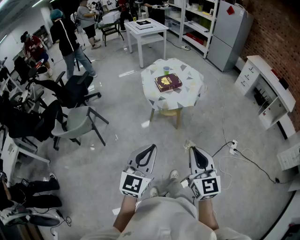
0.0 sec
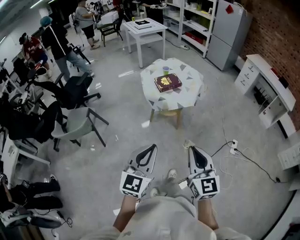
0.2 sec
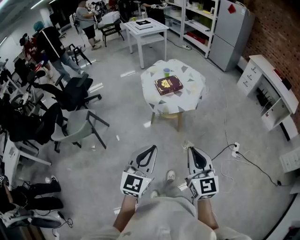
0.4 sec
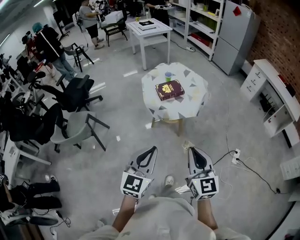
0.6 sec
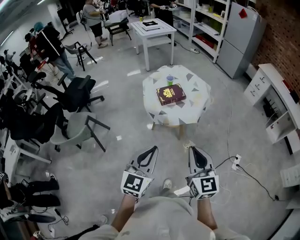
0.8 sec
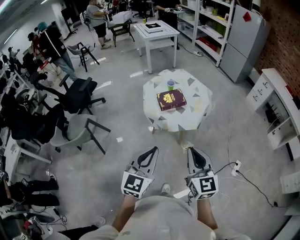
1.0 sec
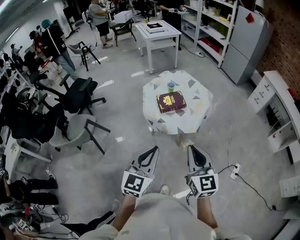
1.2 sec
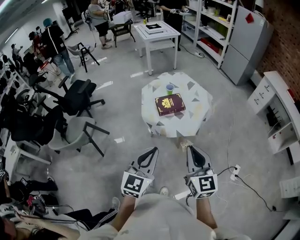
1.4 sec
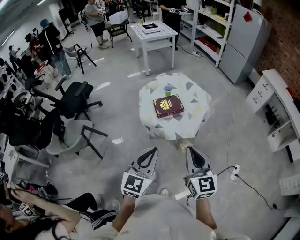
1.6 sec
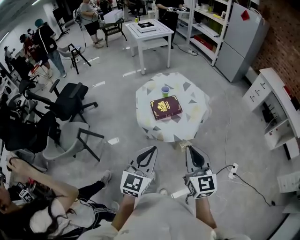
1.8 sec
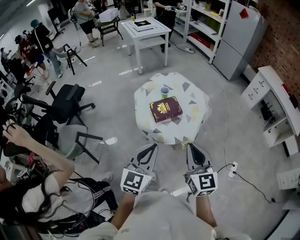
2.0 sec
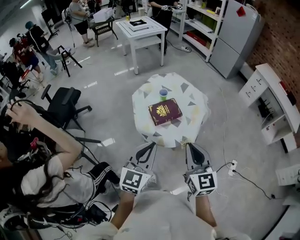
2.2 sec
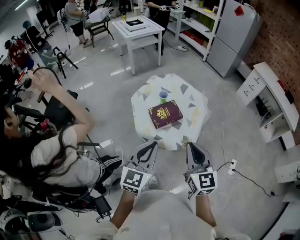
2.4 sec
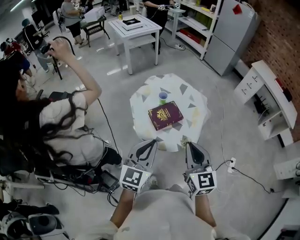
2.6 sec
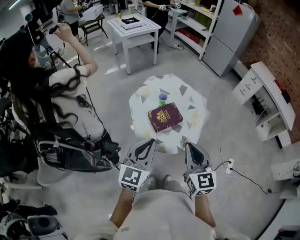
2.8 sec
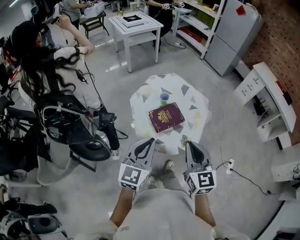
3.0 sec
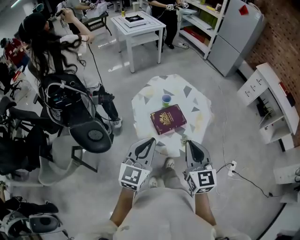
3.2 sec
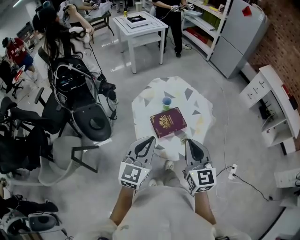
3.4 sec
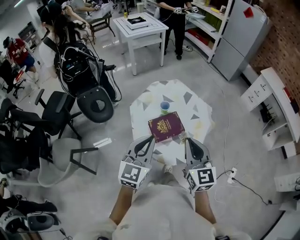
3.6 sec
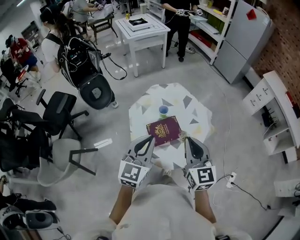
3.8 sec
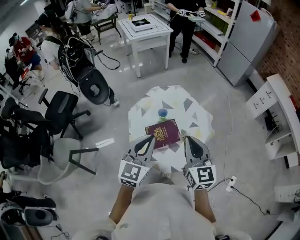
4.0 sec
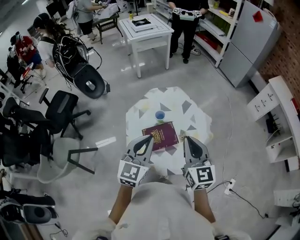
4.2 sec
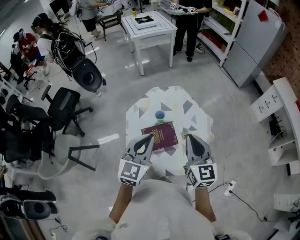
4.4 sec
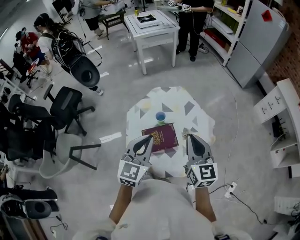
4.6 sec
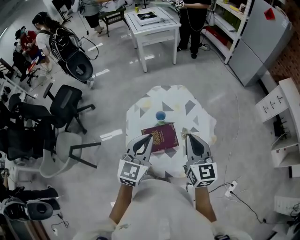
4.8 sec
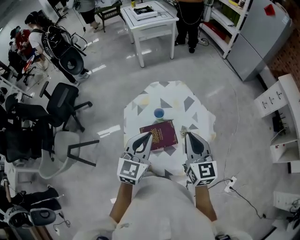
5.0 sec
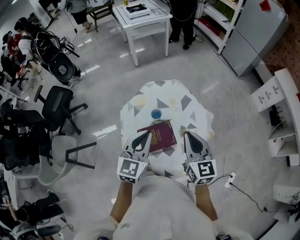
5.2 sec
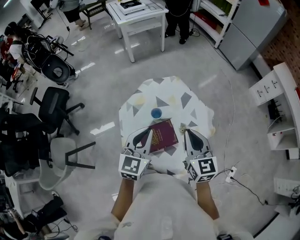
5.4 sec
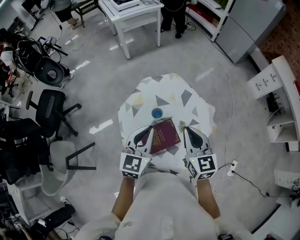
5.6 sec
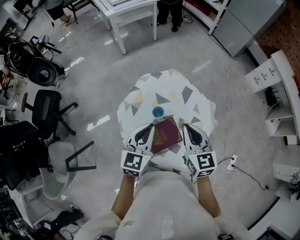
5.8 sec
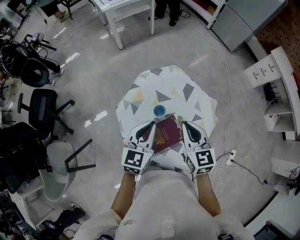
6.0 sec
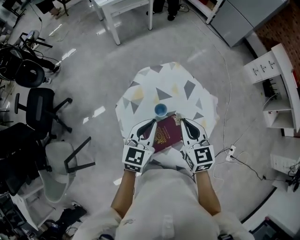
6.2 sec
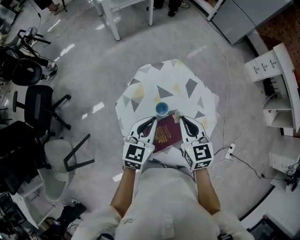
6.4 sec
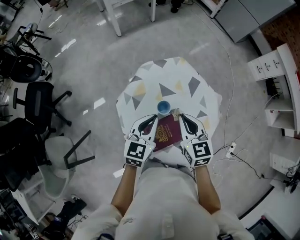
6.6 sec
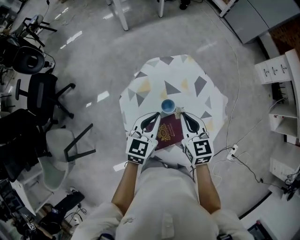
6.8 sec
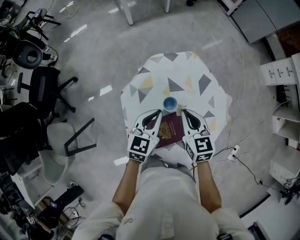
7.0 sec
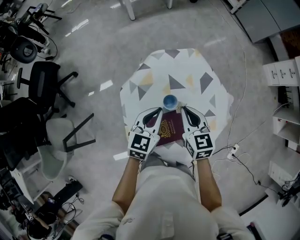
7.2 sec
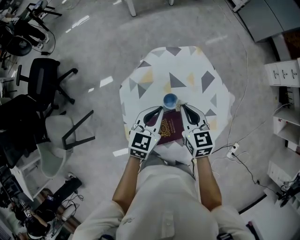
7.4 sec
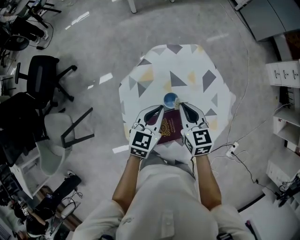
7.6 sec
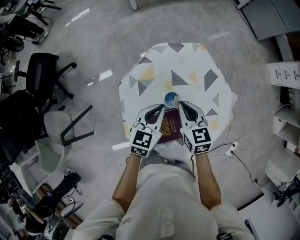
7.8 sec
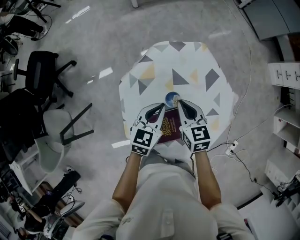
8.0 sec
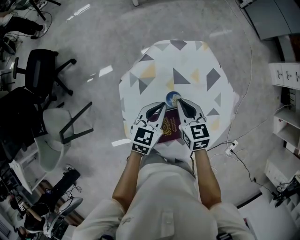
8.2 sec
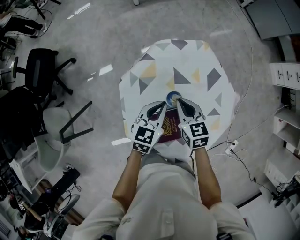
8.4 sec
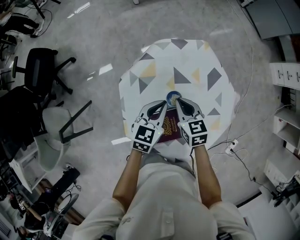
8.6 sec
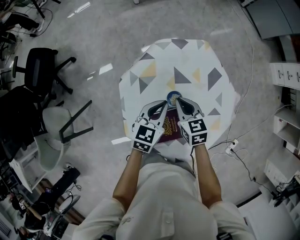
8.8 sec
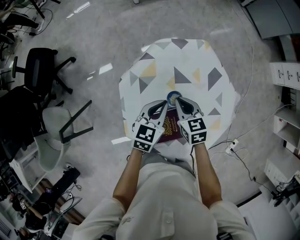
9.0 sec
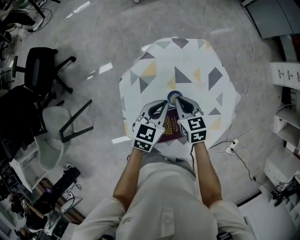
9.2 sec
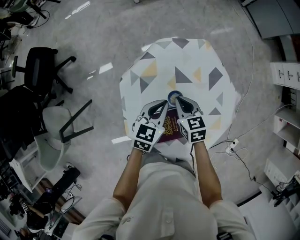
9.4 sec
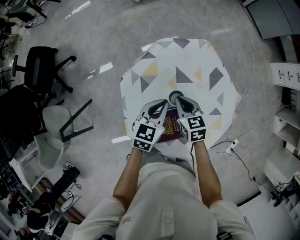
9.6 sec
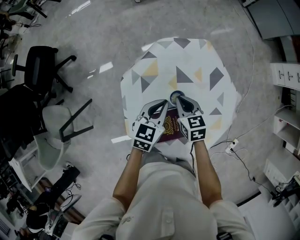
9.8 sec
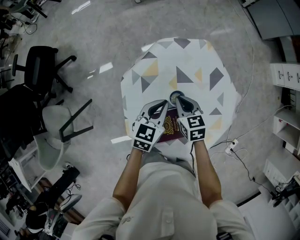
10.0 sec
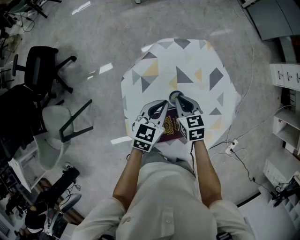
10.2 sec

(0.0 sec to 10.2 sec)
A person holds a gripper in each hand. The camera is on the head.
0.0 sec - 1.4 sec: Both grippers move forward, roughly 25 cm.
1.4 sec - 3.0 sec: Both grippers move forward and to the left, some 25 cm.
3.0 sec - 4.4 sec: The grippers both shift forward and to the right by about 20 cm.
4.4 sec - 5.8 sec: The two grippers go about 15 cm forward and downward.
5.8 sec - 7.2 sec: The left gripper moves downward and forward, some 15 cm; the right gripper is displaced downward, forward and to the left by roughly 15 cm.
7.2 sec - 8.8 sec: The right gripper goes approximately 10 cm downward, while the left gripper shifts about 5 cm downward.
8.8 sec - 10.2 sec: The grippers move only a little.

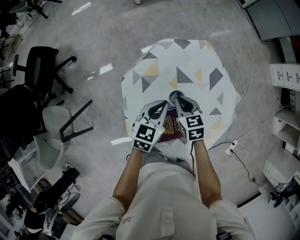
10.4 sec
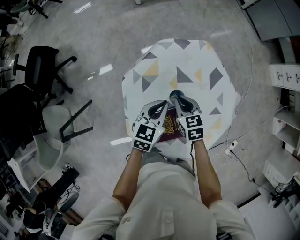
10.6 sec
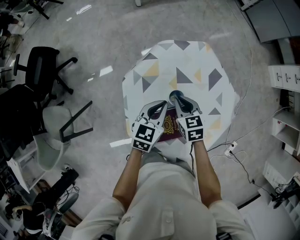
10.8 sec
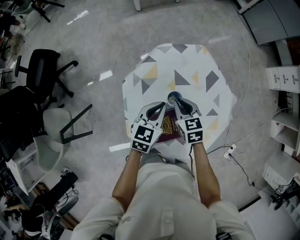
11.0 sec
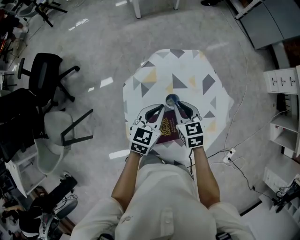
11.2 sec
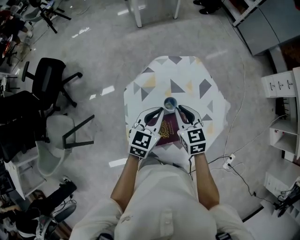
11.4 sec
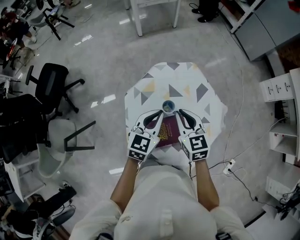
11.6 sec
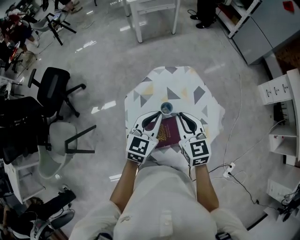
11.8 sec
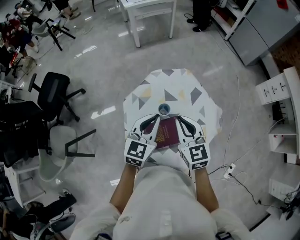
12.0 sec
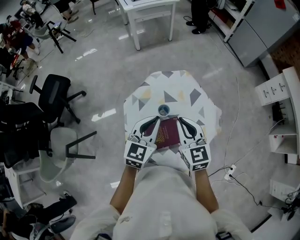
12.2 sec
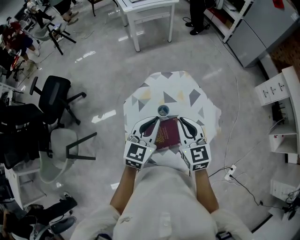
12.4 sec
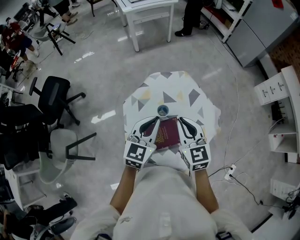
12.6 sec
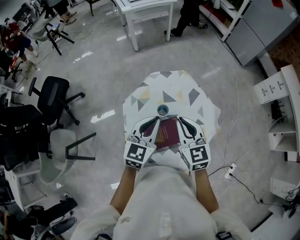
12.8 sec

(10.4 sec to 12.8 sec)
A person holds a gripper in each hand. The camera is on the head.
10.4 sec - 11.6 sec: The grippers both shift upward by some 15 cm. The right gripper turns by about 20 degrees.
11.6 sec - 12.8 sec: The grippers both shift upward by approximately 5 cm.

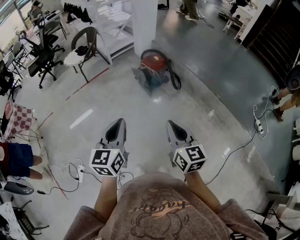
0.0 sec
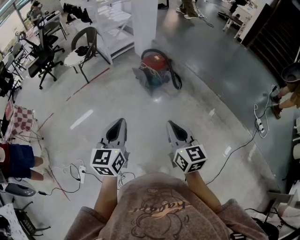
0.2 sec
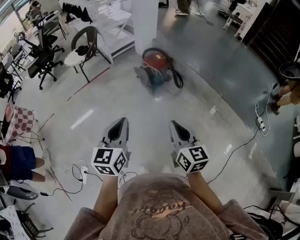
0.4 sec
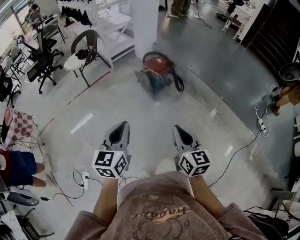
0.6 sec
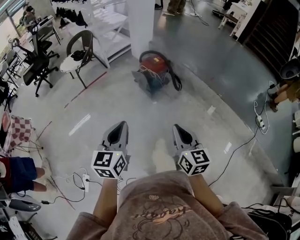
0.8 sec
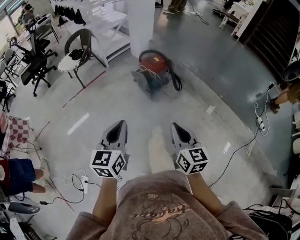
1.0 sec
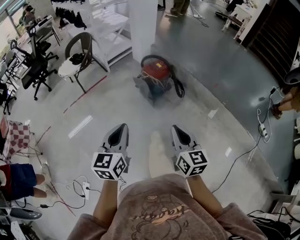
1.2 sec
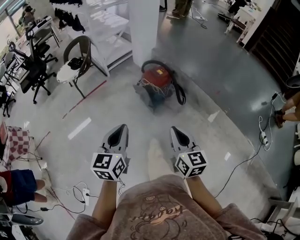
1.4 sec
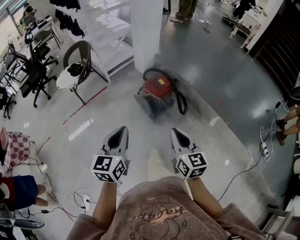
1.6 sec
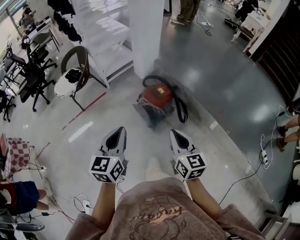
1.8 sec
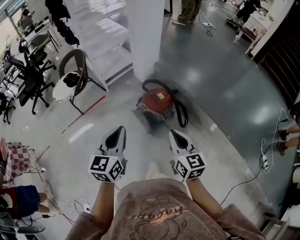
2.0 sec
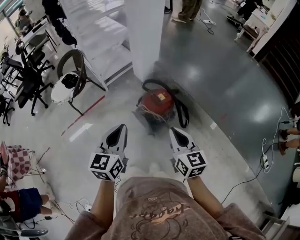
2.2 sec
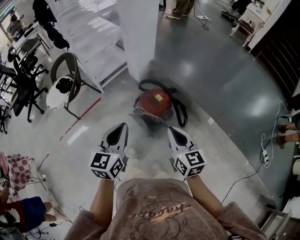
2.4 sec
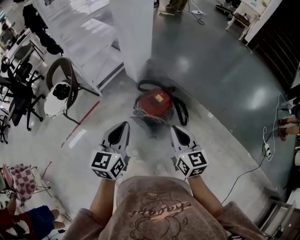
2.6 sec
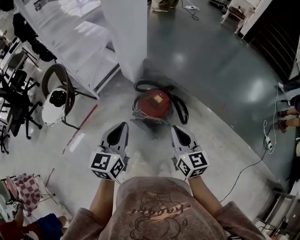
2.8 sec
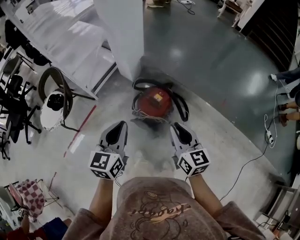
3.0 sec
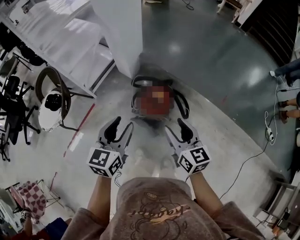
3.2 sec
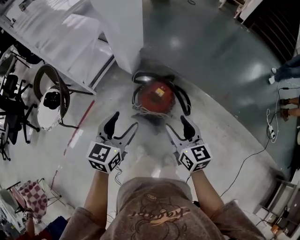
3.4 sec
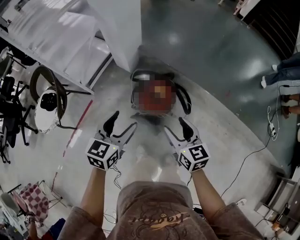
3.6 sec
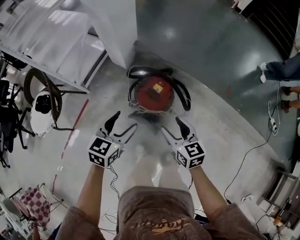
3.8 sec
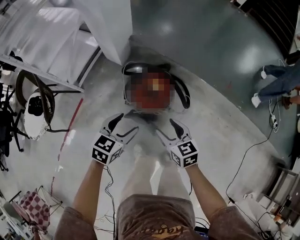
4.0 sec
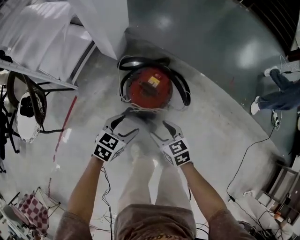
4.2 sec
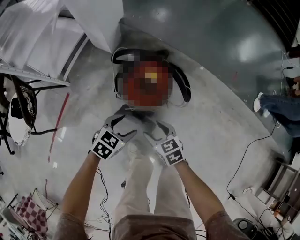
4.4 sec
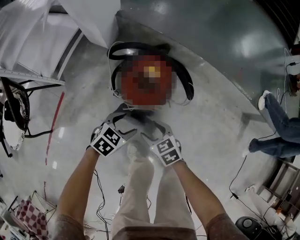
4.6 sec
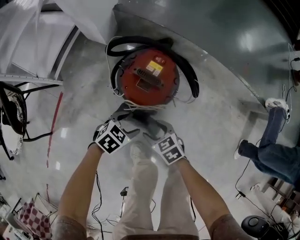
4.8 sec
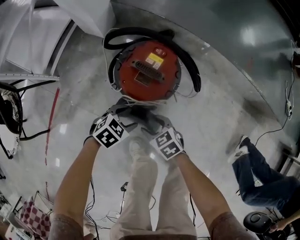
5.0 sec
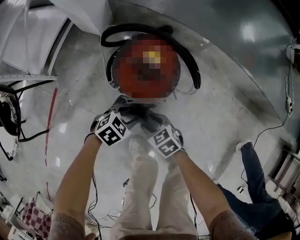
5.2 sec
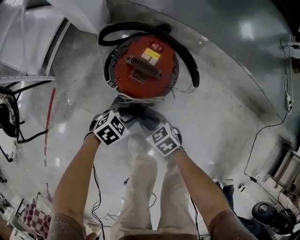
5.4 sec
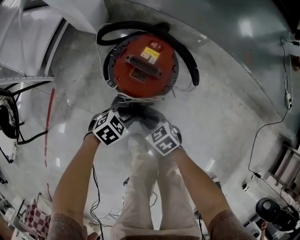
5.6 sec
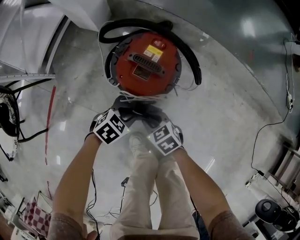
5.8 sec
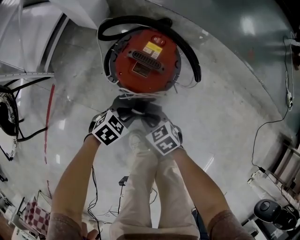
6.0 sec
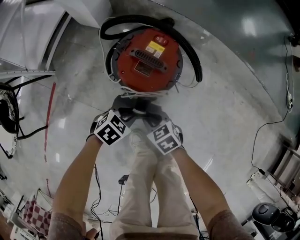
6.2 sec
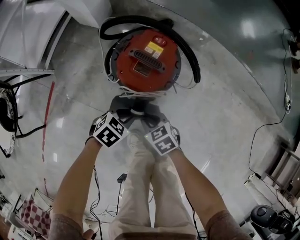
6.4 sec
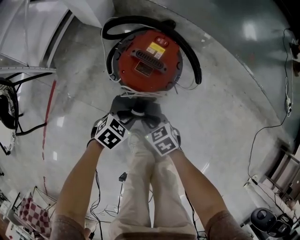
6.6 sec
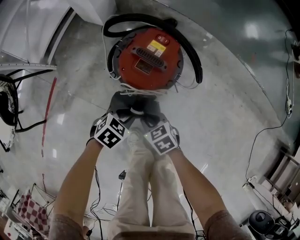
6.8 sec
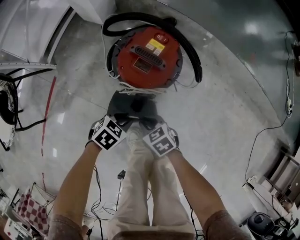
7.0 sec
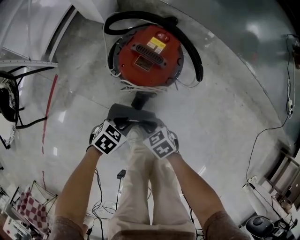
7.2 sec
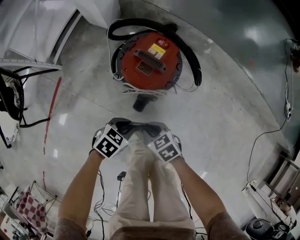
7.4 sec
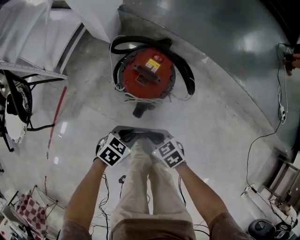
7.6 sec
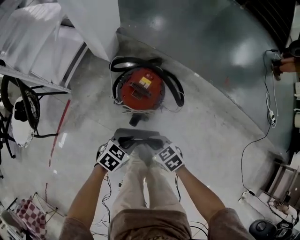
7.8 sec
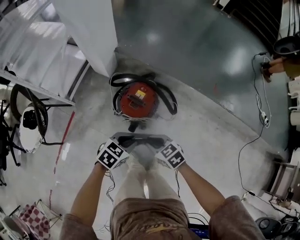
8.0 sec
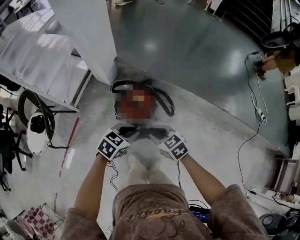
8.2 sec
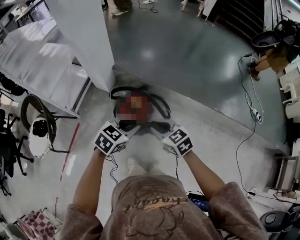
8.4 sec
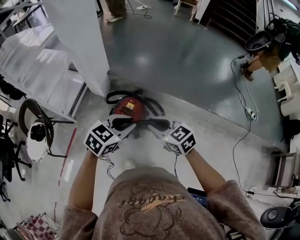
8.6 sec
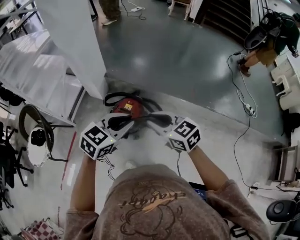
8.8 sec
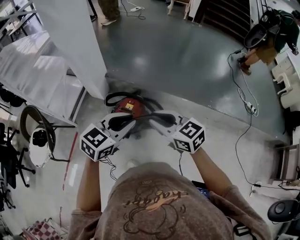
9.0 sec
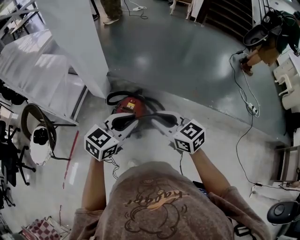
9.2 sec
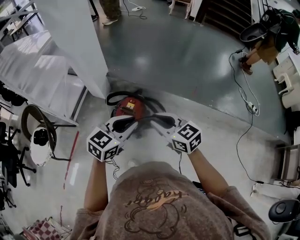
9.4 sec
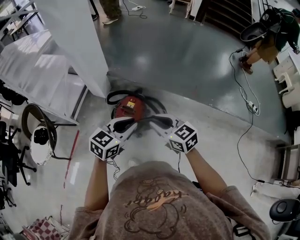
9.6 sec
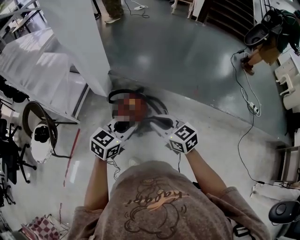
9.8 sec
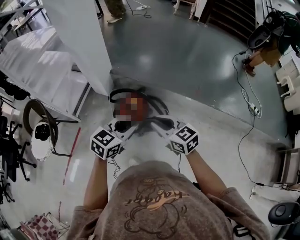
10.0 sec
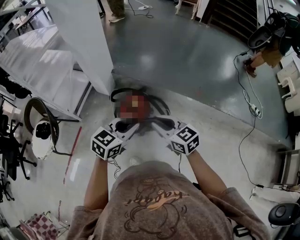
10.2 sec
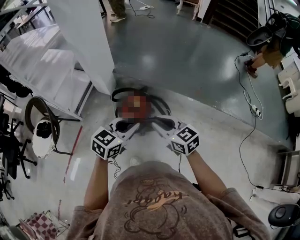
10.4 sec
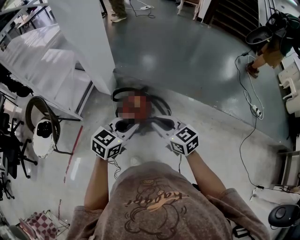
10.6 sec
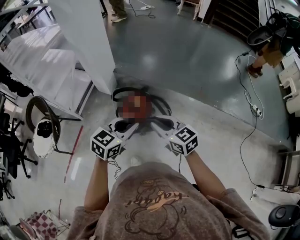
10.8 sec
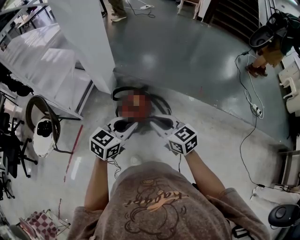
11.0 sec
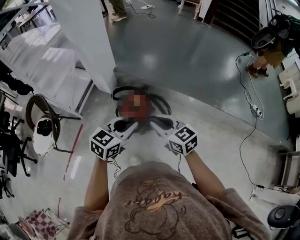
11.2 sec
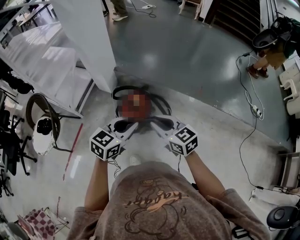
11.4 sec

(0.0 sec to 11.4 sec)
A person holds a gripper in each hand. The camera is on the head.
0.0 sec - 1.4 sec: Both grippers move forward, approximately 20 cm.
1.4 sec - 2.8 sec: The grippers both shift forward by roughly 40 cm.
2.8 sec - 4.2 sec: Both grippers move downward, about 35 cm. The left gripper rotates about 50 degrees, and opens its fingers. Meanwhile the right gripper rotates roughly 30 degrees, and opens.
4.2 sec - 5.6 sec: The two grippers go roughly 25 cm downward. The right gripper closes; the left gripper turns by about 30 degrees, and closes up.
5.6 sec - 7.2 sec: The left gripper ends up approximately 5 cm from where it was, while the right gripper changes place by some 5 cm.
7.2 sec - 8.6 sec: Both grippers travel together upward, some 60 cm. The right gripper changes its angle by about 30 degrees; the left gripper rotates about 30 degrees.
10.0 sec - 11.4 sec: The grippers make only small movements.
